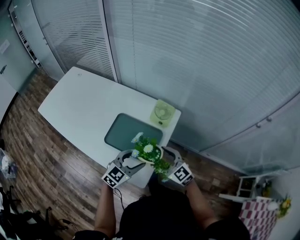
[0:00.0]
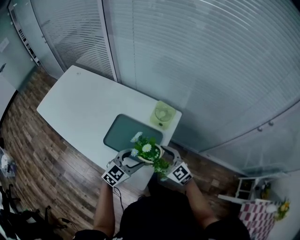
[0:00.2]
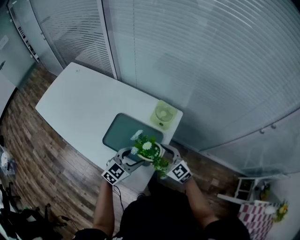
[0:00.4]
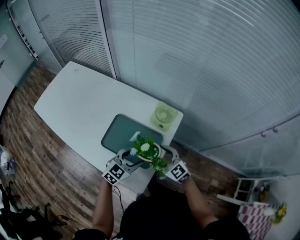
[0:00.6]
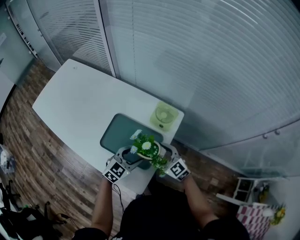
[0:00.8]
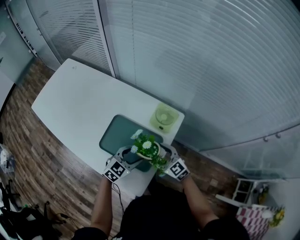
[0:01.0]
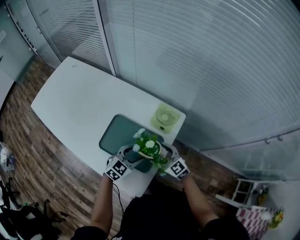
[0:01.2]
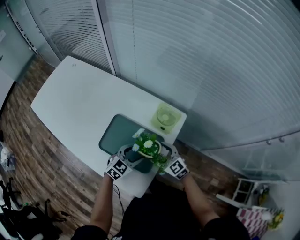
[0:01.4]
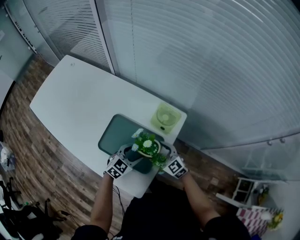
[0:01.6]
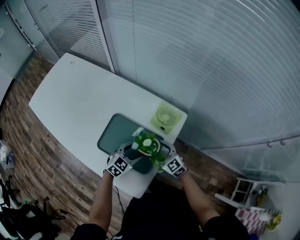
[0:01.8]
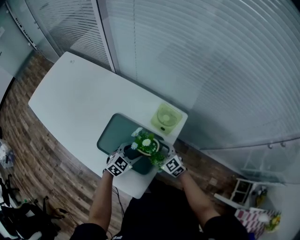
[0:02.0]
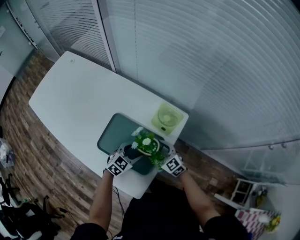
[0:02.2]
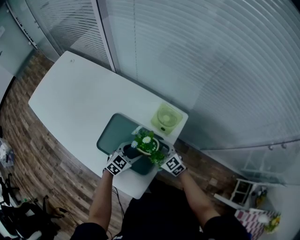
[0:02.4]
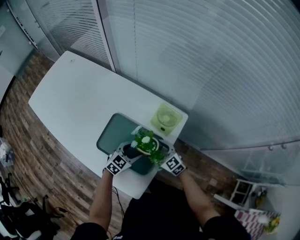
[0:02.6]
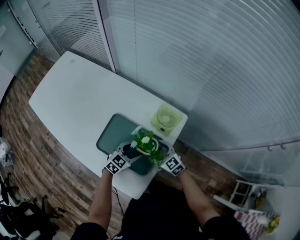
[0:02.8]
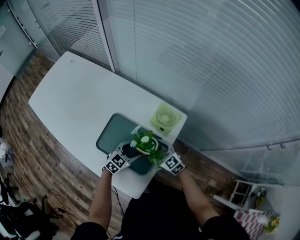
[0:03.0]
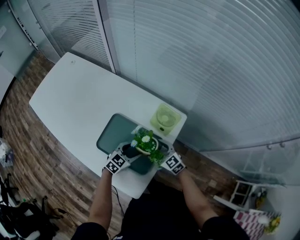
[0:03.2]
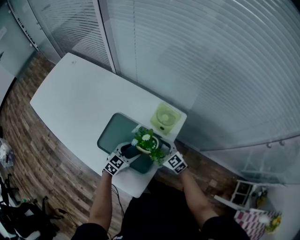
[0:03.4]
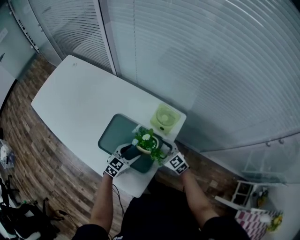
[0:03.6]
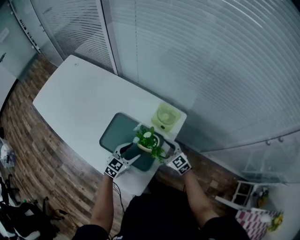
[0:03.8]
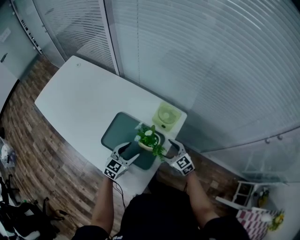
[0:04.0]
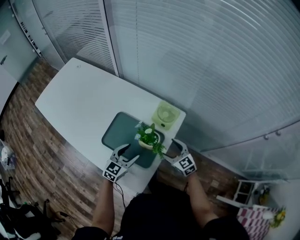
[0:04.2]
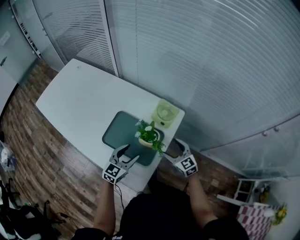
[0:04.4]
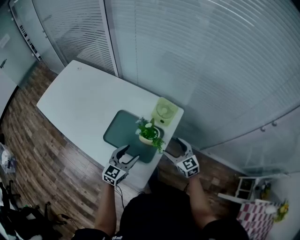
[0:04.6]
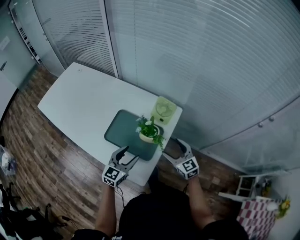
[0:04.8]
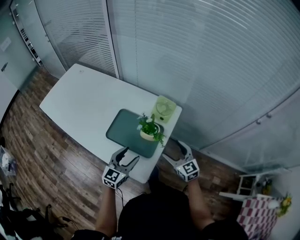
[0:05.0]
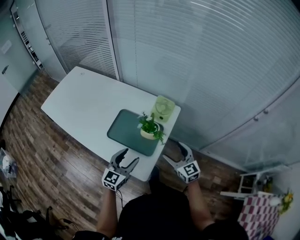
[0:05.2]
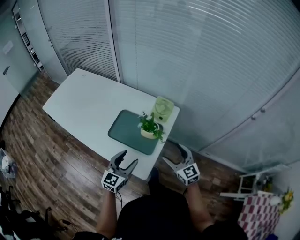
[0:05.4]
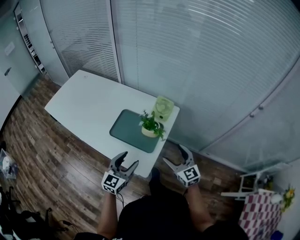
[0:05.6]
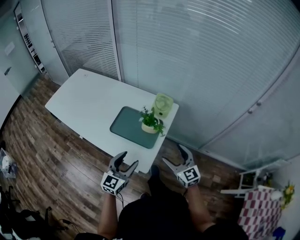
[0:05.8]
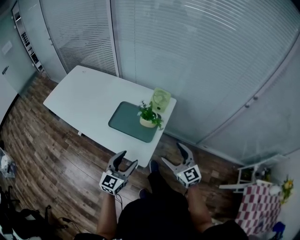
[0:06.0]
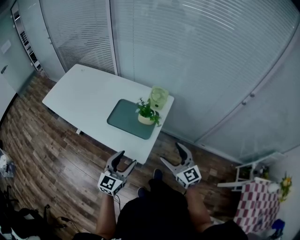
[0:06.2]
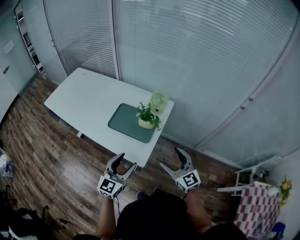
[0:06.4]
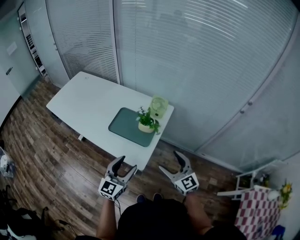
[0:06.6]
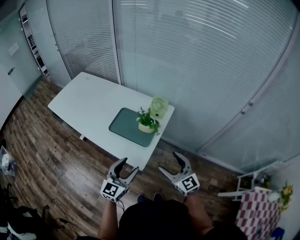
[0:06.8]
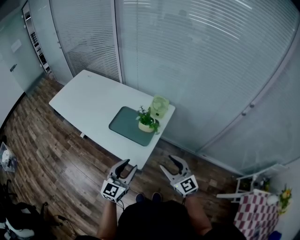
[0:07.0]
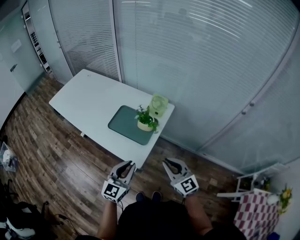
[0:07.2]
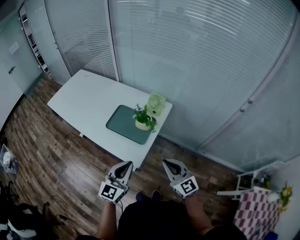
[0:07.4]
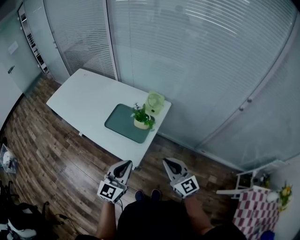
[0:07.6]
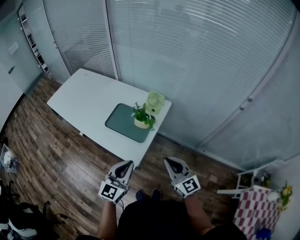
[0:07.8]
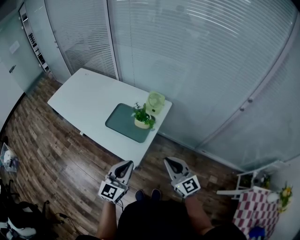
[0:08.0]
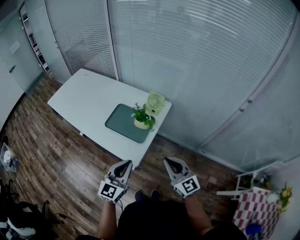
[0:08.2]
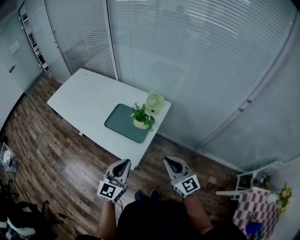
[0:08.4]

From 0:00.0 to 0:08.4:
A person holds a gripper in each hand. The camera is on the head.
From 0:00.0 to 0:01.4: Both grippers travel together downward and forward, roughly 15 cm.
From 0:01.4 to 0:02.8: The left gripper changes place by about 5 cm; the right gripper ends up about 5 cm from where it was.
From 0:02.8 to 0:04.2: The left gripper is displaced upward by about 5 cm. Meanwhile the right gripper travels to the right and upward by approximately 10 cm.
From 0:04.2 to 0:05.6: The two grippers go about 20 cm backward and upward.
From 0:05.6 to 0:07.0: The left gripper is displaced backward and upward by about 10 cm, and closes up, while the right gripper moves backward, approximately 10 cm.
From 0:07.0 to 0:08.4: The right gripper closes, while the left gripper closes up.

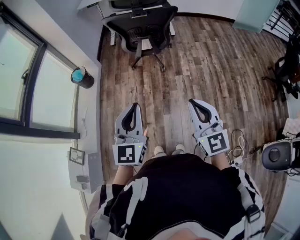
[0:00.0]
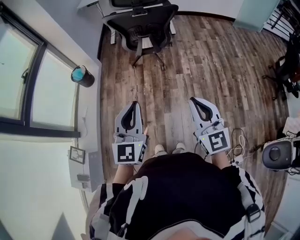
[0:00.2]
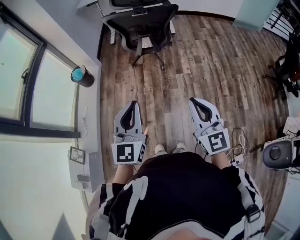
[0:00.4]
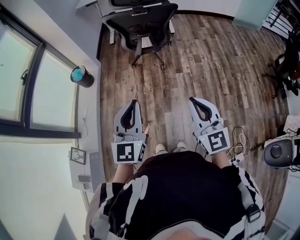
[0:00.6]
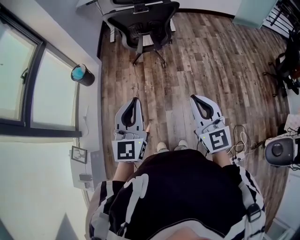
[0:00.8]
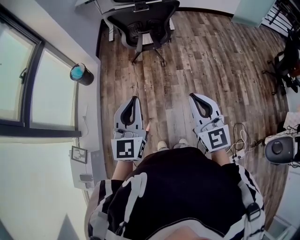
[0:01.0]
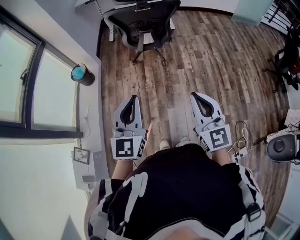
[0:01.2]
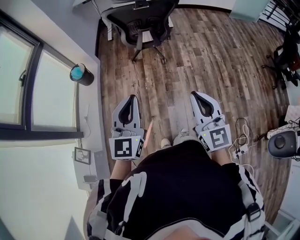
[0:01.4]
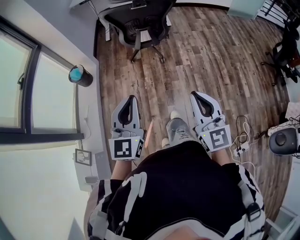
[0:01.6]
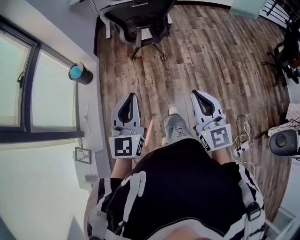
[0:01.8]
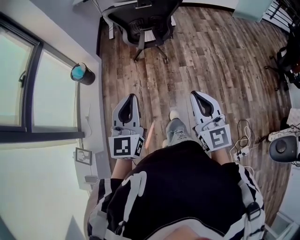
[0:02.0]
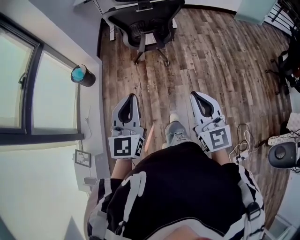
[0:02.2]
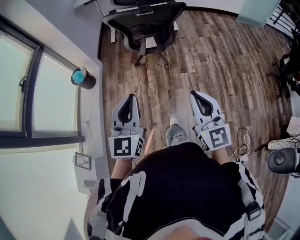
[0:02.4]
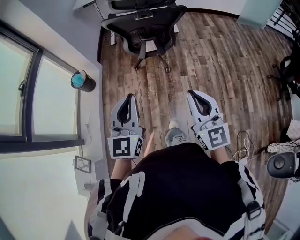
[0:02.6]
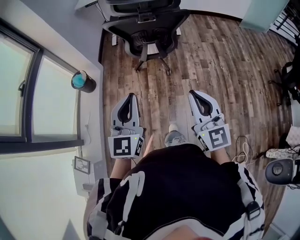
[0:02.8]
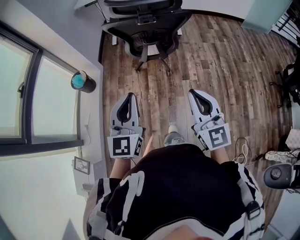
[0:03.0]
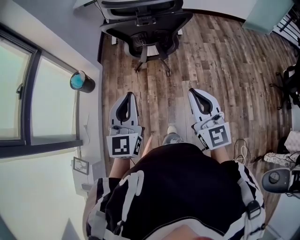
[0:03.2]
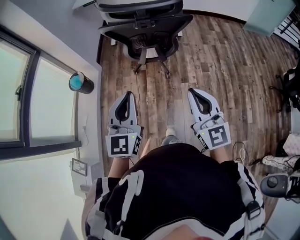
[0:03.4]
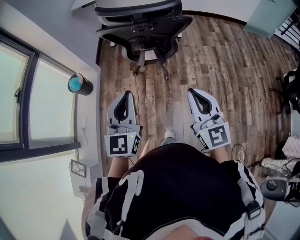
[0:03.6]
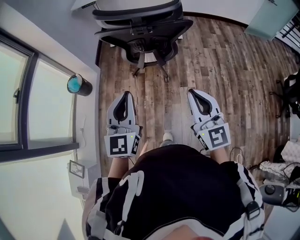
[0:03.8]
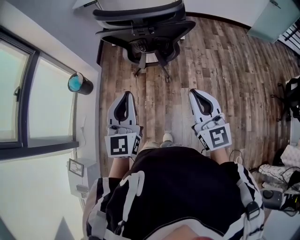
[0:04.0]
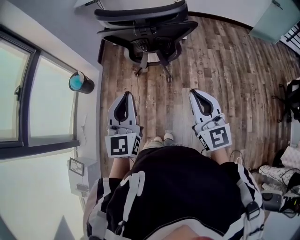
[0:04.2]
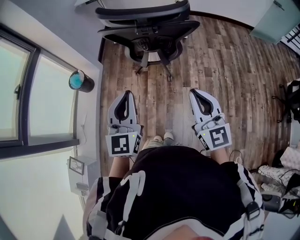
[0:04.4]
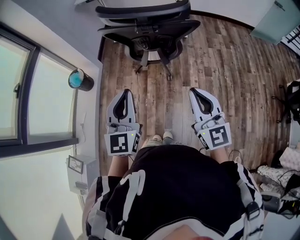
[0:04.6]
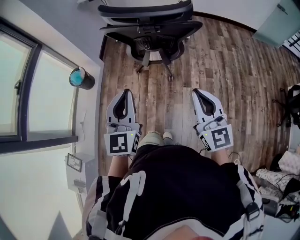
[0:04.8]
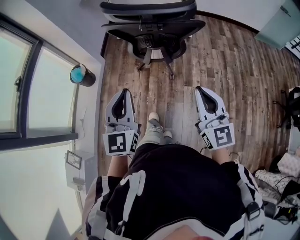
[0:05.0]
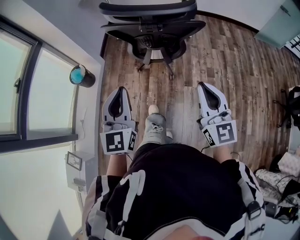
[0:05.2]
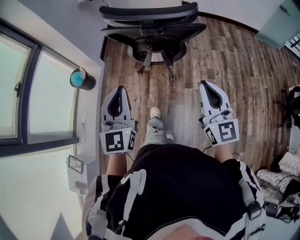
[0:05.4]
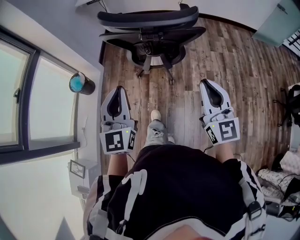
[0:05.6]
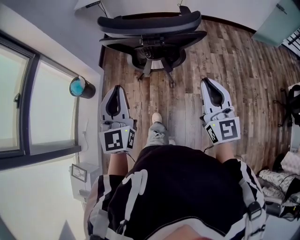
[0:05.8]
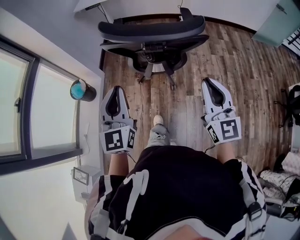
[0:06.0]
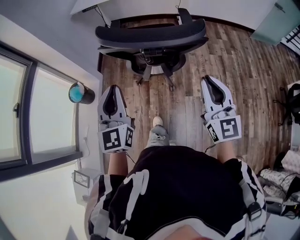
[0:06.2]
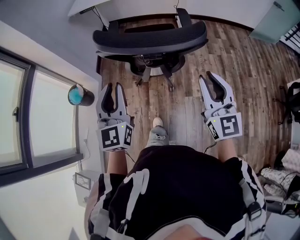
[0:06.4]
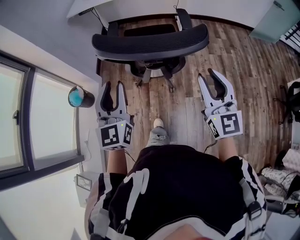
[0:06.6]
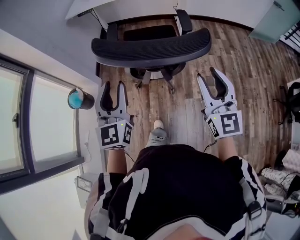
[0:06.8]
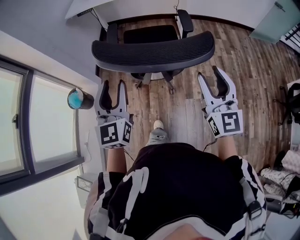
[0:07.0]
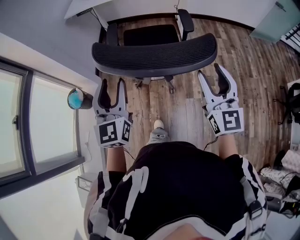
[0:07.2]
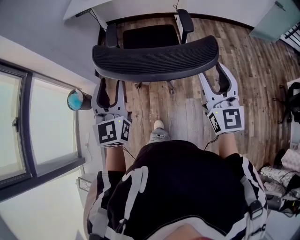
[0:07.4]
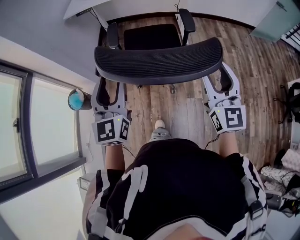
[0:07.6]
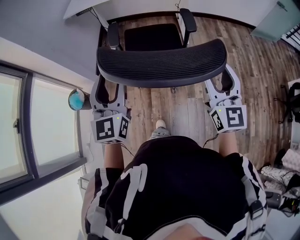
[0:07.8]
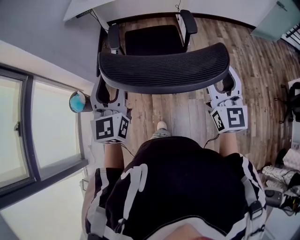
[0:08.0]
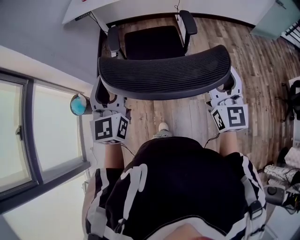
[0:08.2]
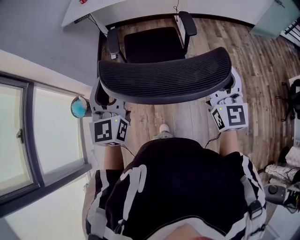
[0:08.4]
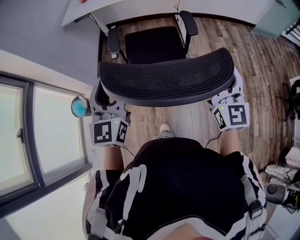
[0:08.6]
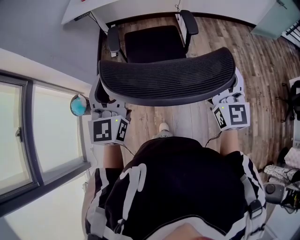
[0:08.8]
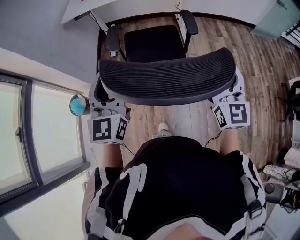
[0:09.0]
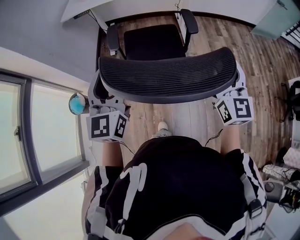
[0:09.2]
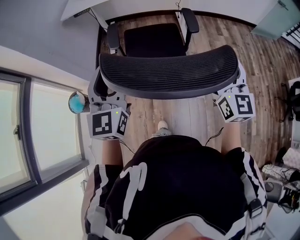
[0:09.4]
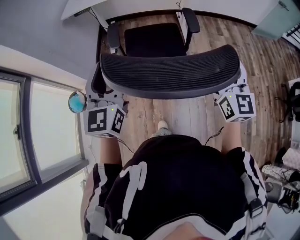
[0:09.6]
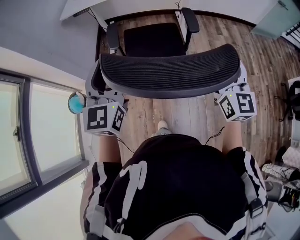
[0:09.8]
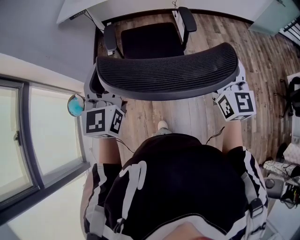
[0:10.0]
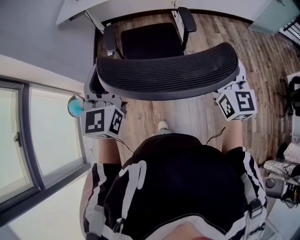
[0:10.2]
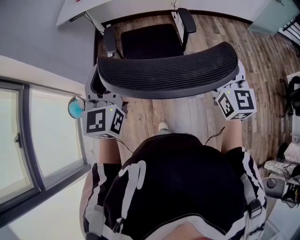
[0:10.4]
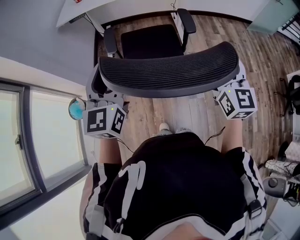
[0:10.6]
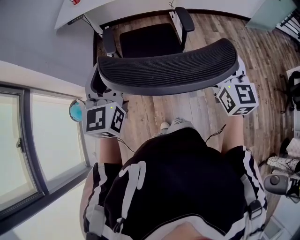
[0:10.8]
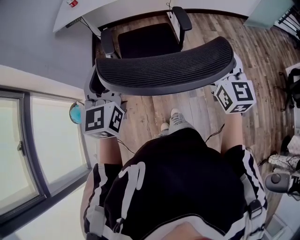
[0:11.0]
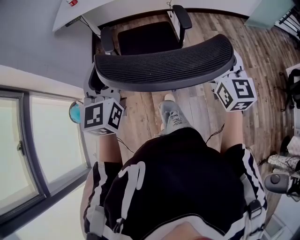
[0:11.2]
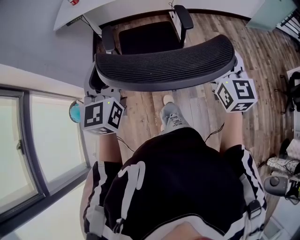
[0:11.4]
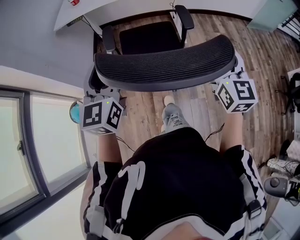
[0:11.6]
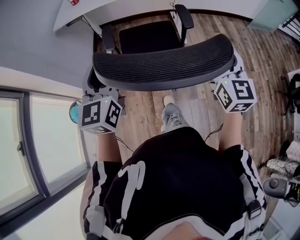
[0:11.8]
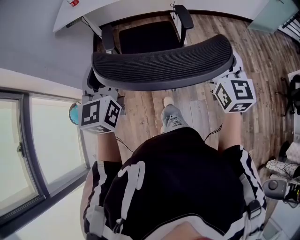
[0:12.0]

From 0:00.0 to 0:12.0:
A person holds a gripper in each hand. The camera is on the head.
From 0:00.0 to 0:01.6: The two grippers go about 5 cm to the left.
From 0:01.6 to 0:03.0: The two grippers go approximately 20 cm forward.
From 0:03.0 to 0:04.4: The two grippers go approximately 10 cm forward.
From 0:04.4 to 0:06.0: The two grippers go roughly 10 cm forward.
From 0:06.0 to 0:07.6: Both grippers travel together forward, roughly 15 cm. The left gripper opens up; the right gripper opens up.
From 0:07.6 to 0:09.0: The two grippers go approximately 5 cm forward.
From 0:09.0 to 0:10.4: The grippers make only small movements.
From 0:10.4 to 0:12.0: The grippers both shift forward by approximately 5 cm.

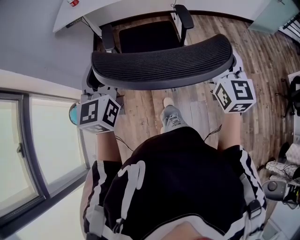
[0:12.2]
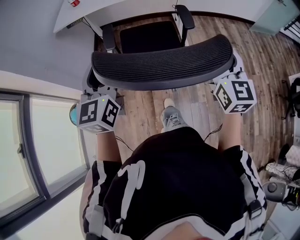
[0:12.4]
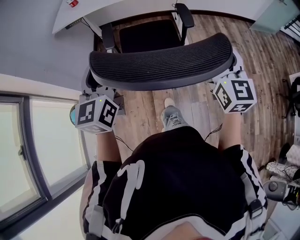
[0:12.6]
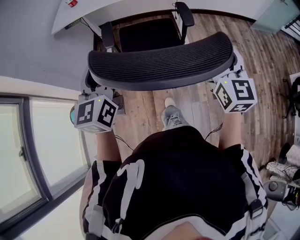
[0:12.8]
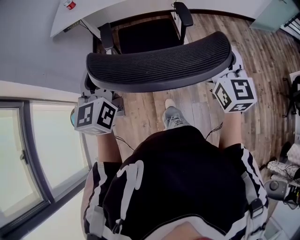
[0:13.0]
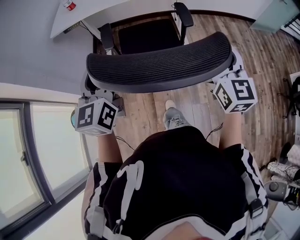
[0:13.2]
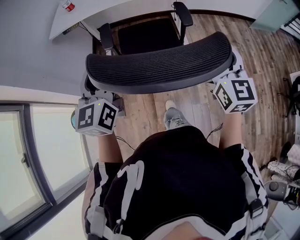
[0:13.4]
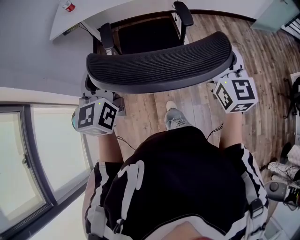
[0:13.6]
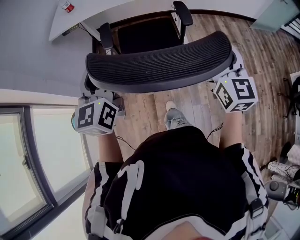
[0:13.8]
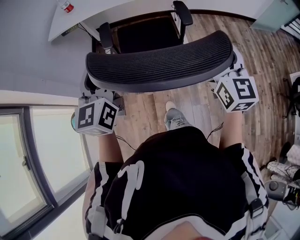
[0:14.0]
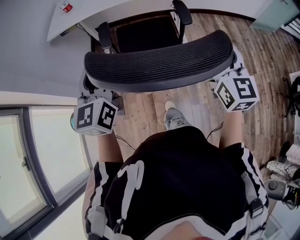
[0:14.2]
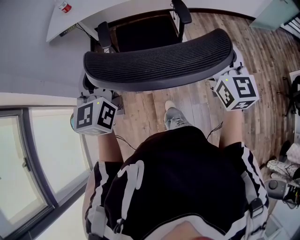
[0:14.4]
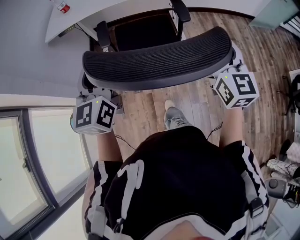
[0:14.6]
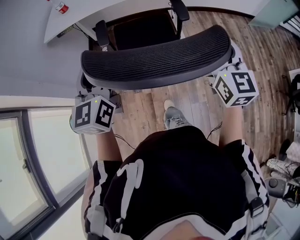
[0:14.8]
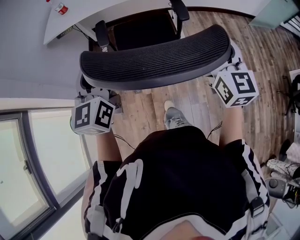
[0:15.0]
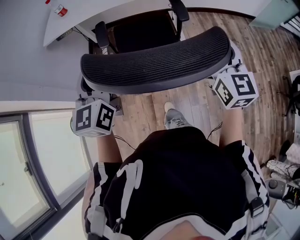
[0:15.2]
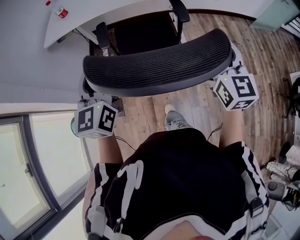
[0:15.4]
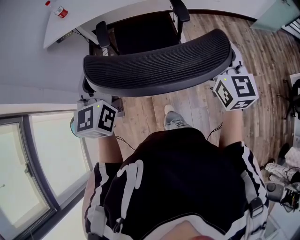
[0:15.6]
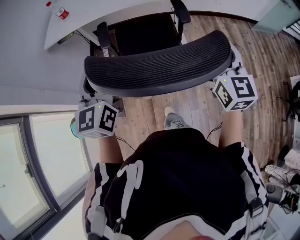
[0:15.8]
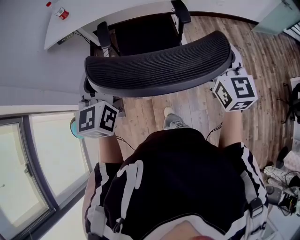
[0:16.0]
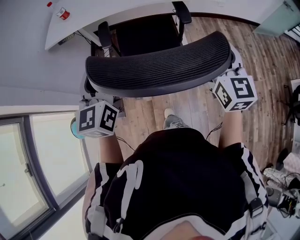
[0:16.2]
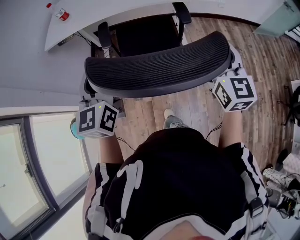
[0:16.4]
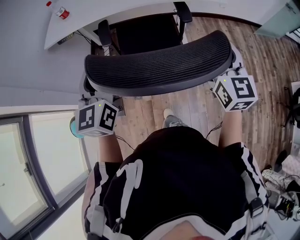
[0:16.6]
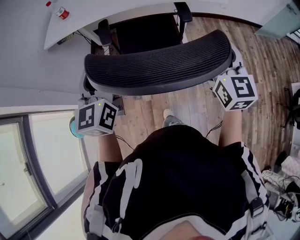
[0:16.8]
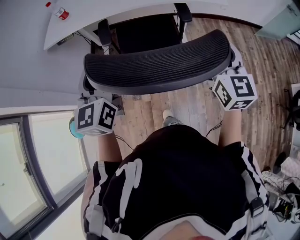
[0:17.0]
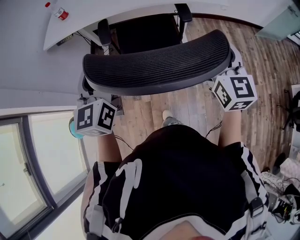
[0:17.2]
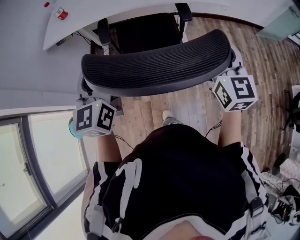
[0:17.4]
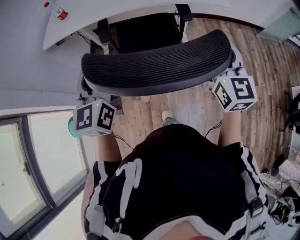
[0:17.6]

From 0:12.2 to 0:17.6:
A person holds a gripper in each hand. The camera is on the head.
From 0:12.2 to 0:13.6: The grippers both shift forward by some 5 cm.
From 0:13.6 to 0:15.0: The grippers move only a little.
From 0:15.0 to 0:16.2: Both grippers move forward, approximately 5 cm.
From 0:16.2 to 0:17.6: The right gripper moves forward, approximately 5 cm.
